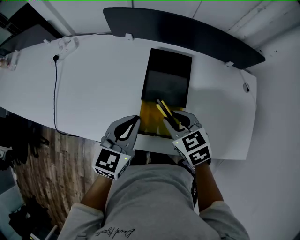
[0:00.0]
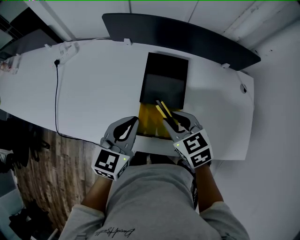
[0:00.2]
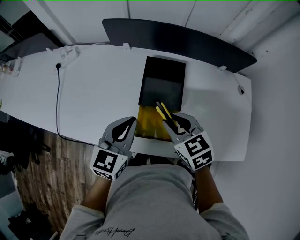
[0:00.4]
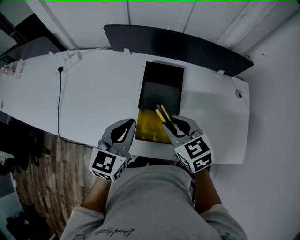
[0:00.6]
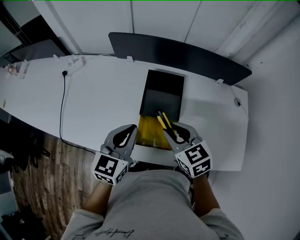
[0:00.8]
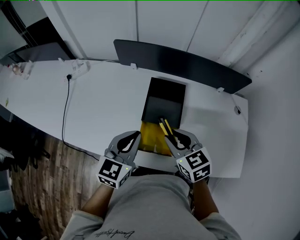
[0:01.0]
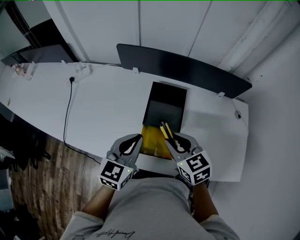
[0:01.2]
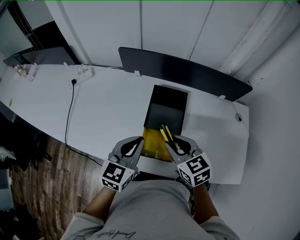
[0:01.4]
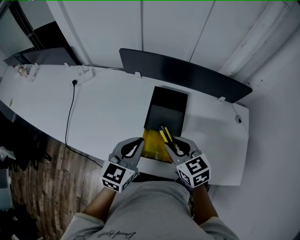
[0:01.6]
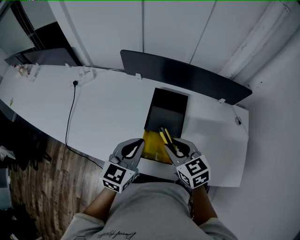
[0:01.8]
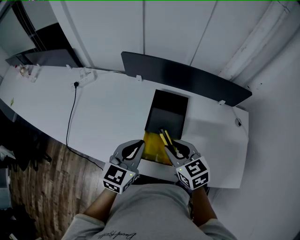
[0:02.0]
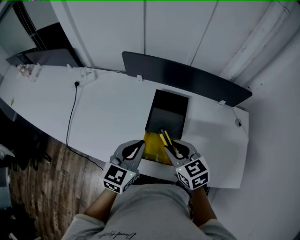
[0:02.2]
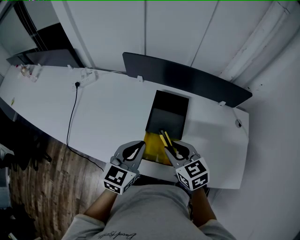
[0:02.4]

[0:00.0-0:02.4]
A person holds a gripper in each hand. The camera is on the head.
0:00.0 to 0:01.2: Both grippers move upward, about 5 cm.
0:01.2 to 0:02.4: The two grippers keep their place.

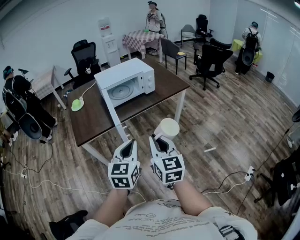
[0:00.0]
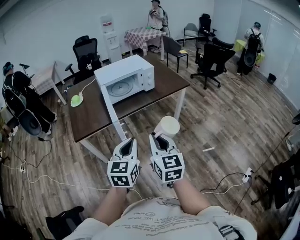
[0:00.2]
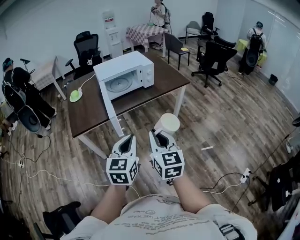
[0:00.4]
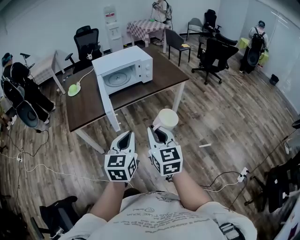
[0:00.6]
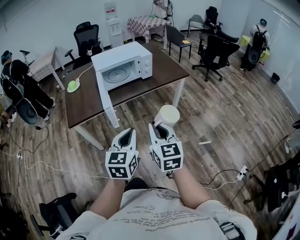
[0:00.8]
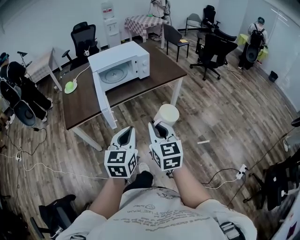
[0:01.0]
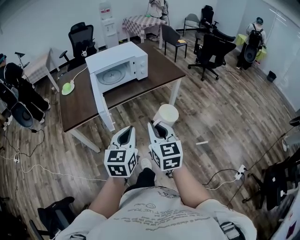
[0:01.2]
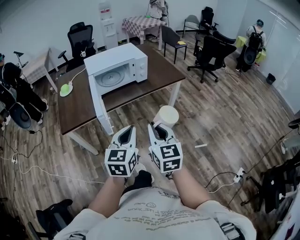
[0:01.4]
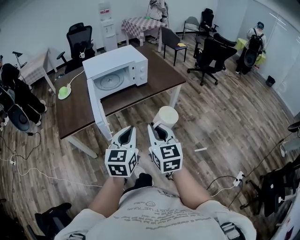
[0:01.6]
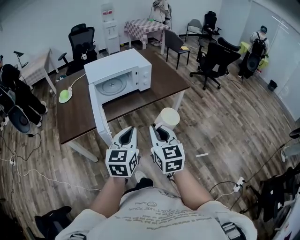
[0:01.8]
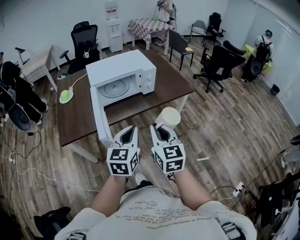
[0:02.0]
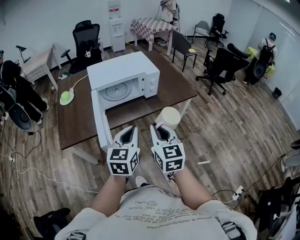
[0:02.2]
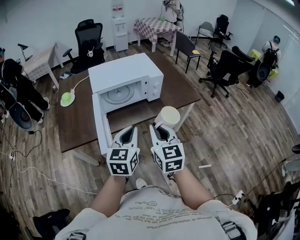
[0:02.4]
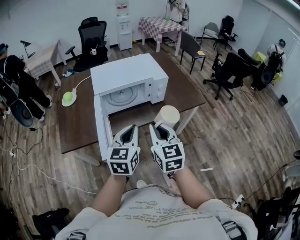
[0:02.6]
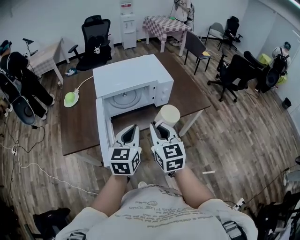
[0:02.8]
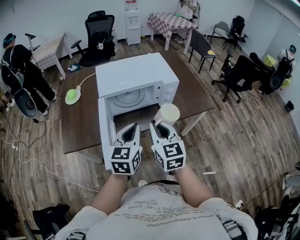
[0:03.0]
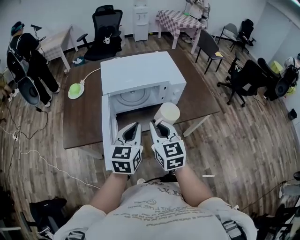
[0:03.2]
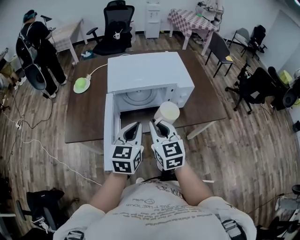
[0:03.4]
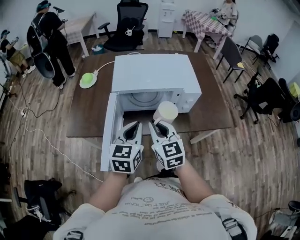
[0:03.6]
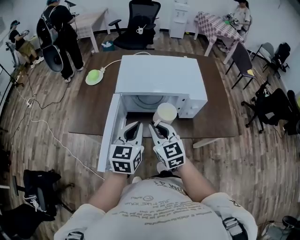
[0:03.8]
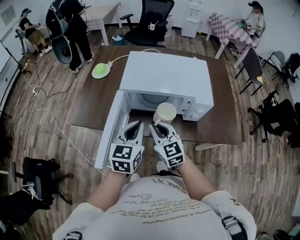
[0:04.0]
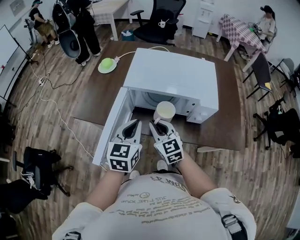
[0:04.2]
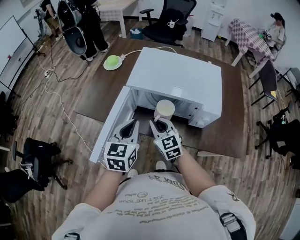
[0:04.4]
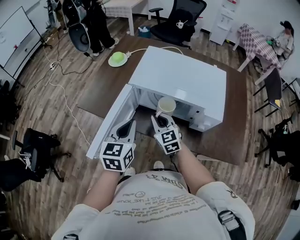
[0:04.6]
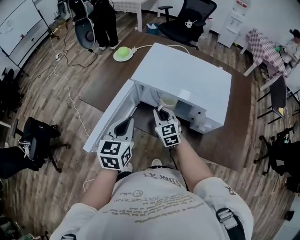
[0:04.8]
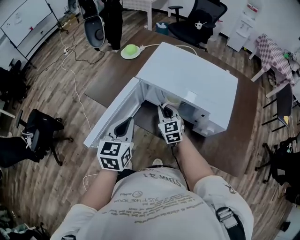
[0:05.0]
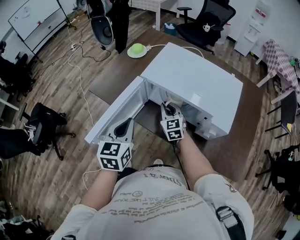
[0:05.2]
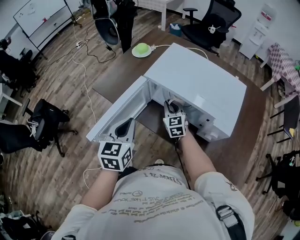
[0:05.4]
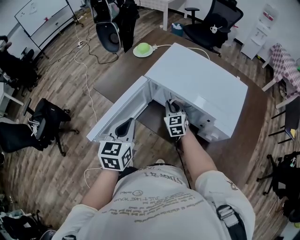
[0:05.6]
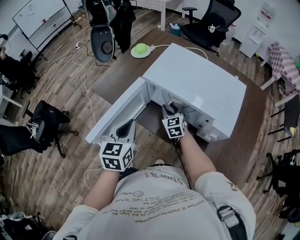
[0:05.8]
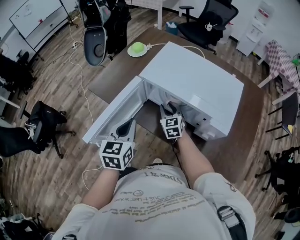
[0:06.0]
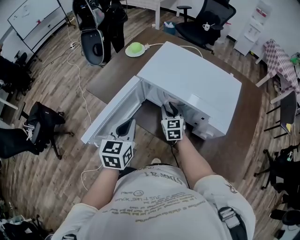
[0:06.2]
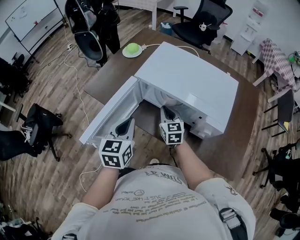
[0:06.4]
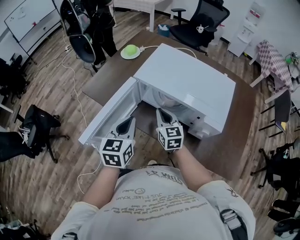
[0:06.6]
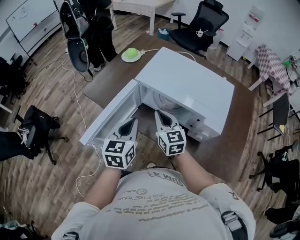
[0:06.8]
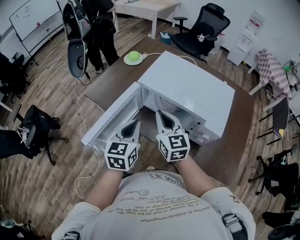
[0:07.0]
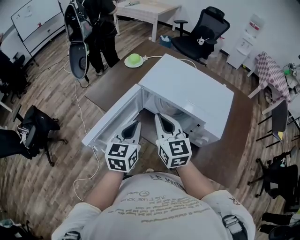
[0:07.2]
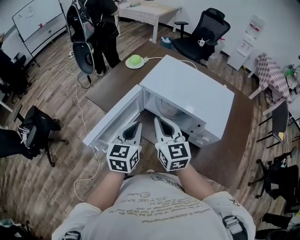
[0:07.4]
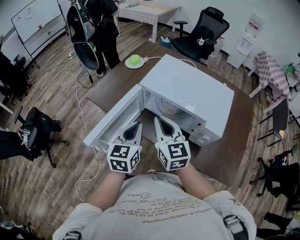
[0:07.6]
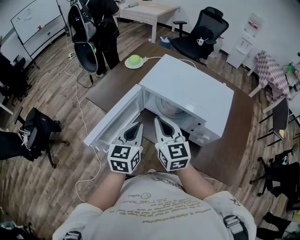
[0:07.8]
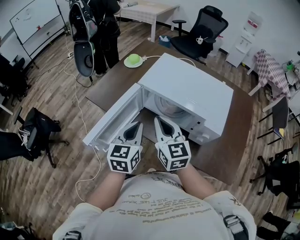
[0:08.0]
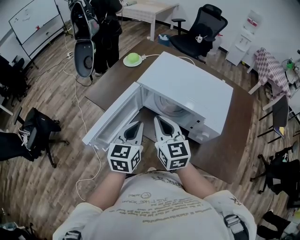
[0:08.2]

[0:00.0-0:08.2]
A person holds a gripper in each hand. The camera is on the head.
0:00.0 to 0:01.6: The two grippers go some 10 cm forward and to the right.
0:01.6 to 0:03.2: The two grippers go approximately 30 cm forward.
0:03.2 to 0:05.0: The right gripper changes place by about 25 cm, and rotates about 40 degrees. The left gripper ends up some 10 cm from where it was, and changes its angle by approximately 40 degrees.
0:05.0 to 0:06.6: The right gripper opens and closes again.
0:06.6 to 0:08.2: The right gripper goes roughly 15 cm upward and backward.

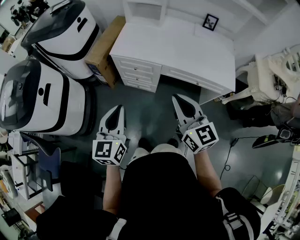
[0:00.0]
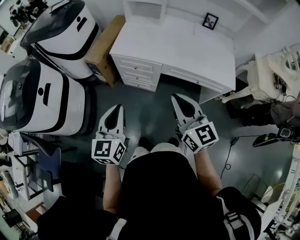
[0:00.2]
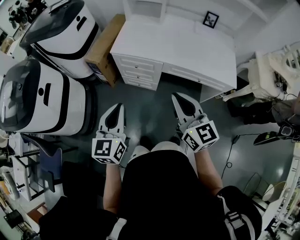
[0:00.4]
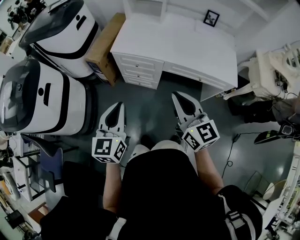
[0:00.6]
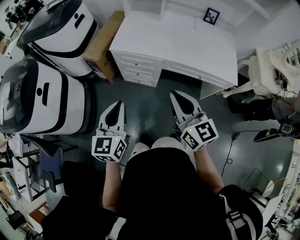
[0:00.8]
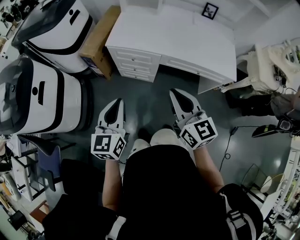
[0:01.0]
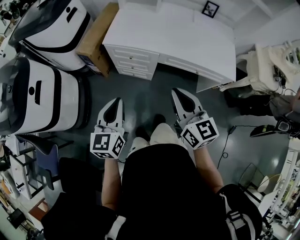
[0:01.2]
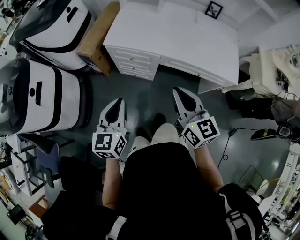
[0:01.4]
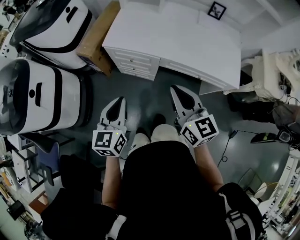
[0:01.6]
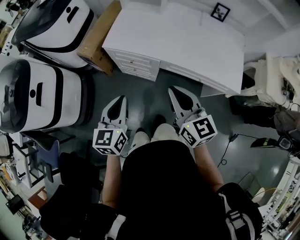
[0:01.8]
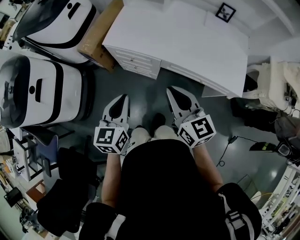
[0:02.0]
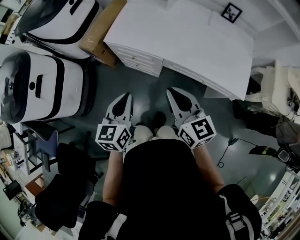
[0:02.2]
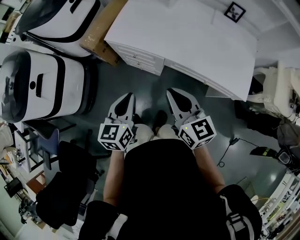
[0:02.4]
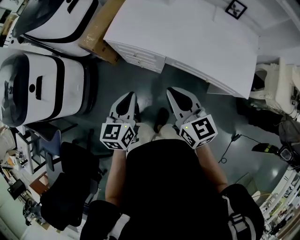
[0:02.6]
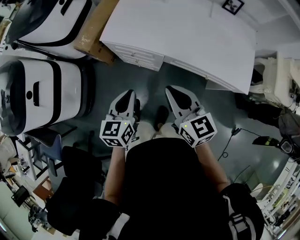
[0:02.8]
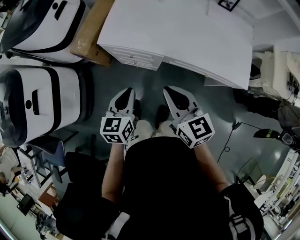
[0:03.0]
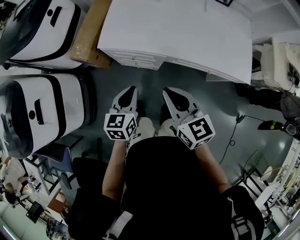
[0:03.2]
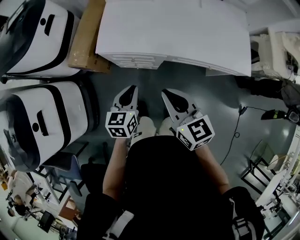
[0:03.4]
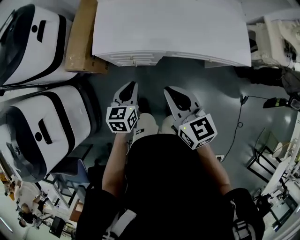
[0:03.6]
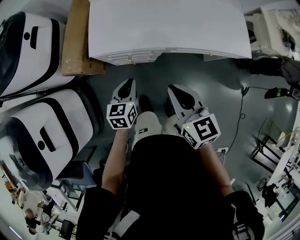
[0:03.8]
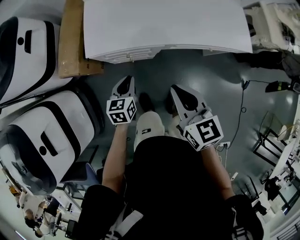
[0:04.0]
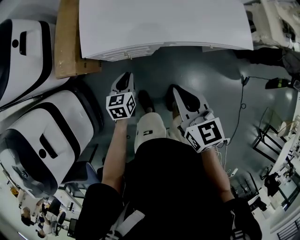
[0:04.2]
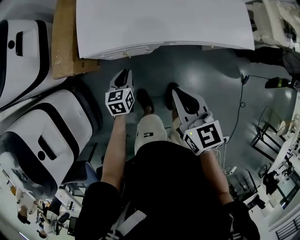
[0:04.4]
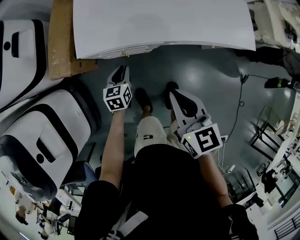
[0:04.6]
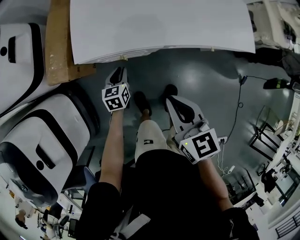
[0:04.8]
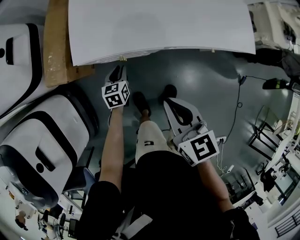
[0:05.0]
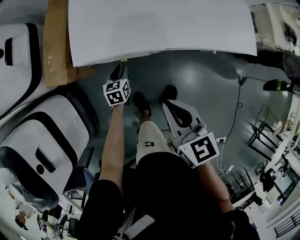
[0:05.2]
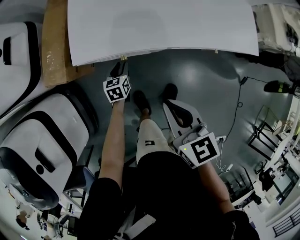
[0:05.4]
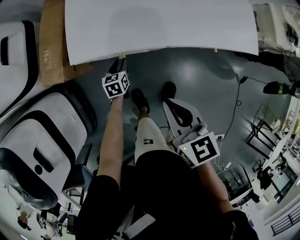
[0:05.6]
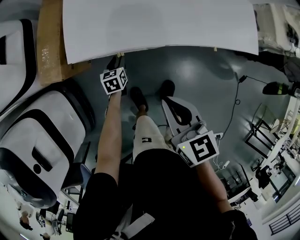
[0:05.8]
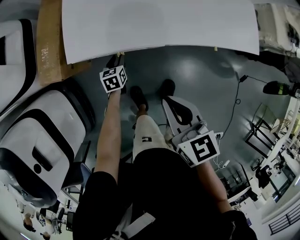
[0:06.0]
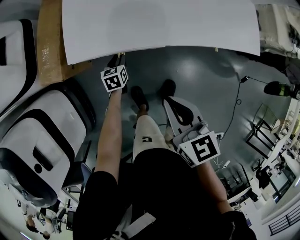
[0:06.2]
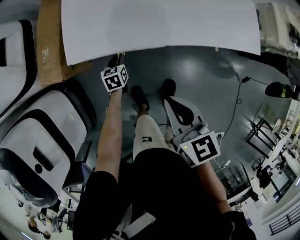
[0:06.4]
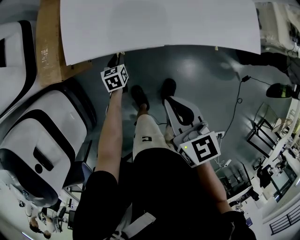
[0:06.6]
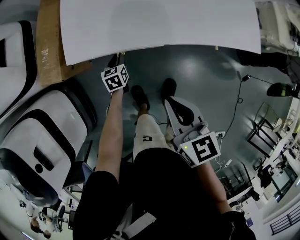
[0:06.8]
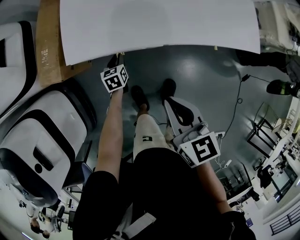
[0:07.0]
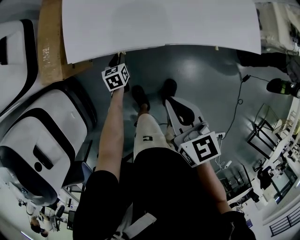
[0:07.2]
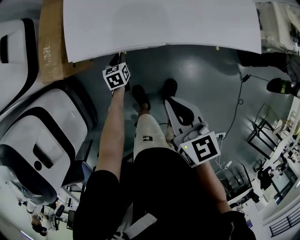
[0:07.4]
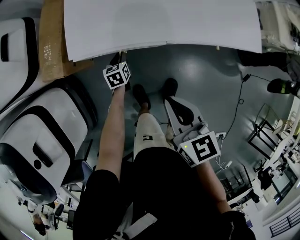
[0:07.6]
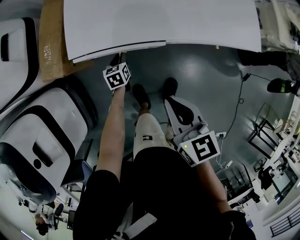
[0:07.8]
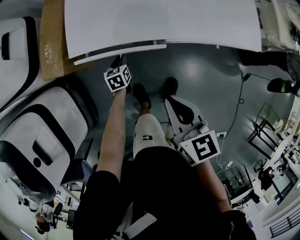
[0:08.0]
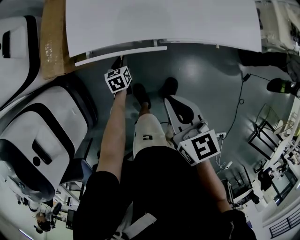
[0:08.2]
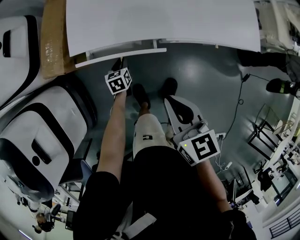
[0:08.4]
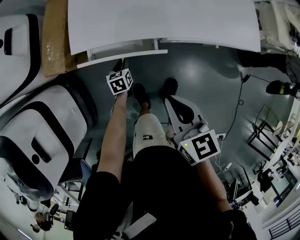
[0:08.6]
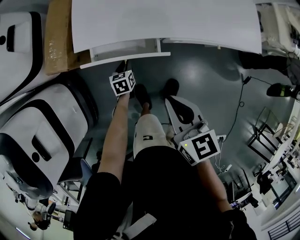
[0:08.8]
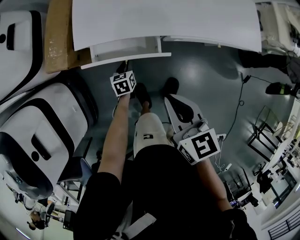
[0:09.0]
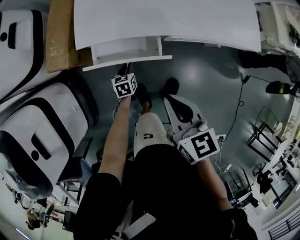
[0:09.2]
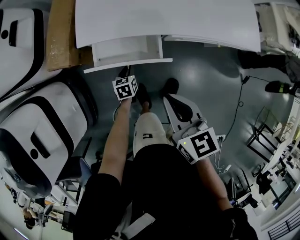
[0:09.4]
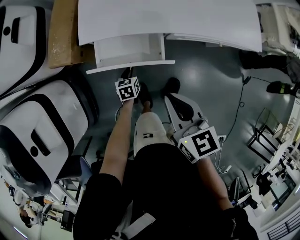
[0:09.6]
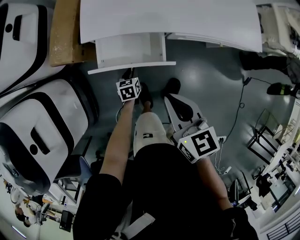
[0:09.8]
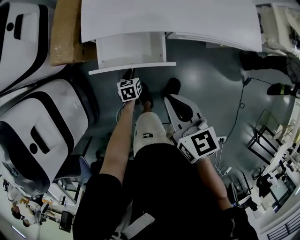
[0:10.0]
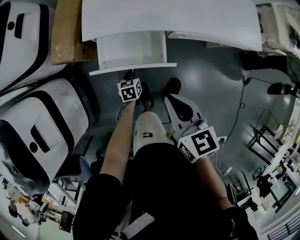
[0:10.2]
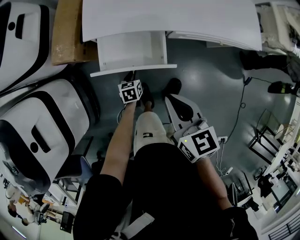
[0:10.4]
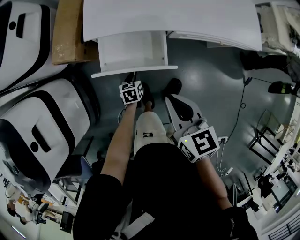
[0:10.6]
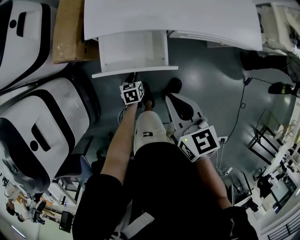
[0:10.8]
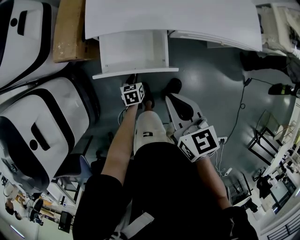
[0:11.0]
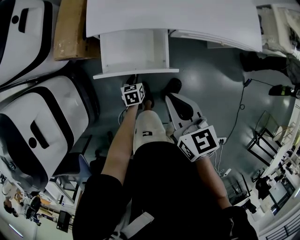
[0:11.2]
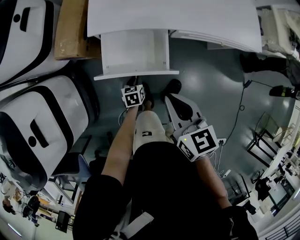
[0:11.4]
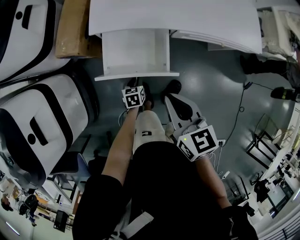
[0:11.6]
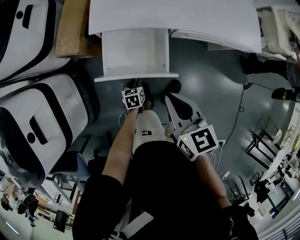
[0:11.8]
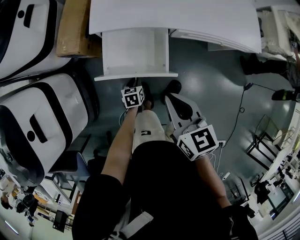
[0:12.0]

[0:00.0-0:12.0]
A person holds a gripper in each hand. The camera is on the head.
0:00.0 to 0:01.6: The left gripper goes approximately 10 cm forward and downward, while the right gripper is displaced forward by some 10 cm.
0:01.6 to 0:03.0: Both grippers move forward and downward, roughly 15 cm.
0:03.0 to 0:04.4: The right gripper goes about 10 cm downward and to the left, and rotates some 30 degrees. The left gripper moves downward and forward, roughly 25 cm.
0:04.4 to 0:06.0: The right gripper heads downward, covering some 5 cm, while the left gripper travels downward and forward by some 20 cm.
0:06.0 to 0:07.6: There are only small adjustments of the grippers.
0:07.6 to 0:09.0: The left gripper goes approximately 10 cm backward.
0:09.0 to 0:10.4: The right gripper changes place by roughly 5 cm. The left gripper heads backward, covering some 10 cm.
0:10.4 to 0:12.0: The left gripper travels backward by about 5 cm.

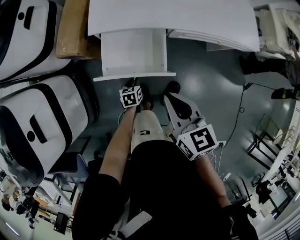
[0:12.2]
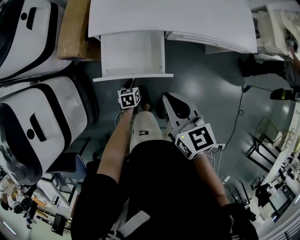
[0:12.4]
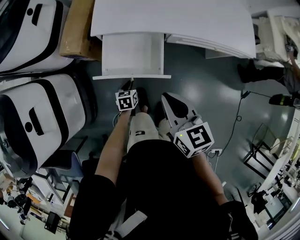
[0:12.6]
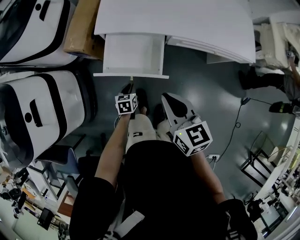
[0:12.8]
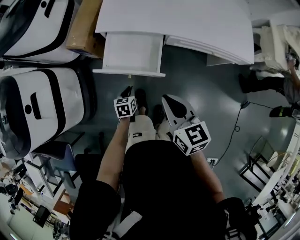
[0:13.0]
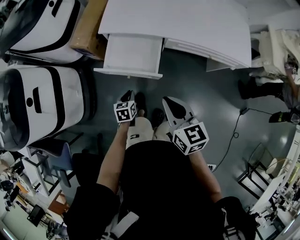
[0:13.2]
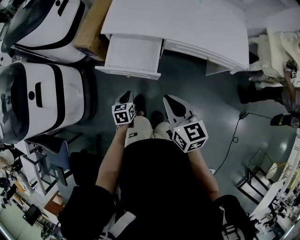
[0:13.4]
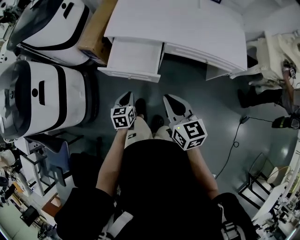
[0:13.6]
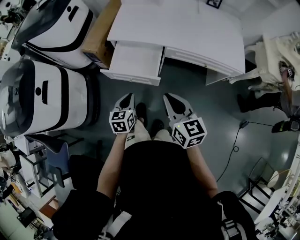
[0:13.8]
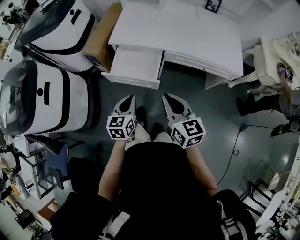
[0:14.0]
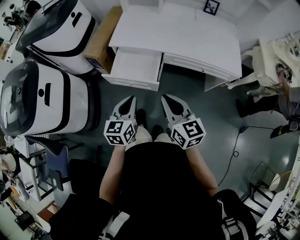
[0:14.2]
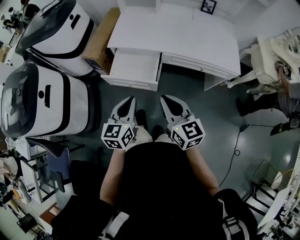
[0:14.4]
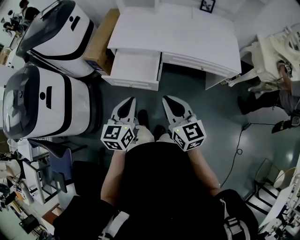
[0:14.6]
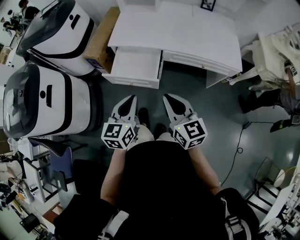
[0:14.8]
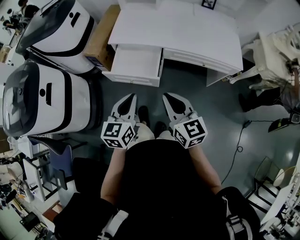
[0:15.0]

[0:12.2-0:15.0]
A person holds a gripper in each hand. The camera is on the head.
0:12.2 to 0:13.6: The left gripper heads upward and backward, covering about 25 cm, and turns by about 20 degrees. The right gripper travels backward, to the right and upward by roughly 15 cm.
0:13.6 to 0:15.0: The right gripper shifts by approximately 5 cm. Meanwhile the left gripper shifts roughly 20 cm upward, and changes its angle by some 20 degrees.
